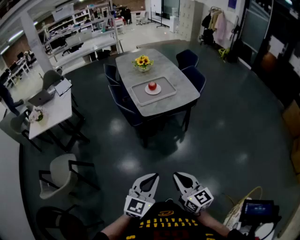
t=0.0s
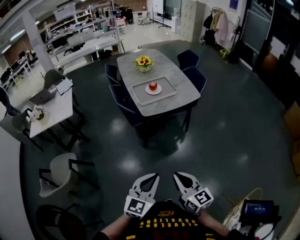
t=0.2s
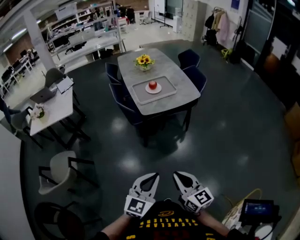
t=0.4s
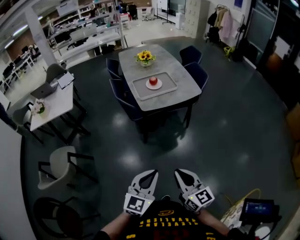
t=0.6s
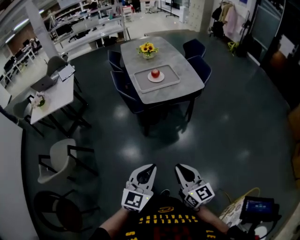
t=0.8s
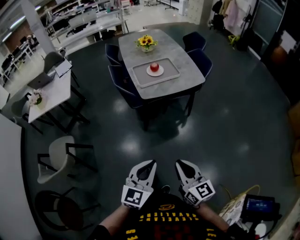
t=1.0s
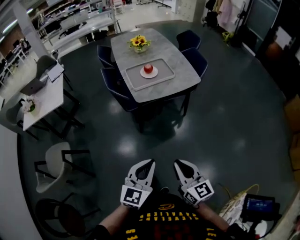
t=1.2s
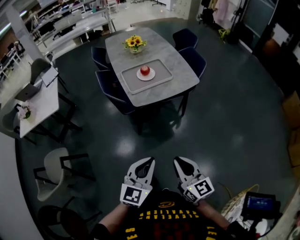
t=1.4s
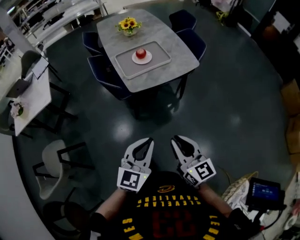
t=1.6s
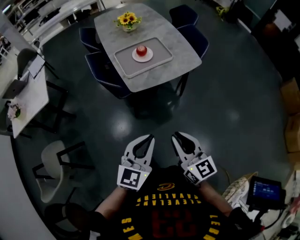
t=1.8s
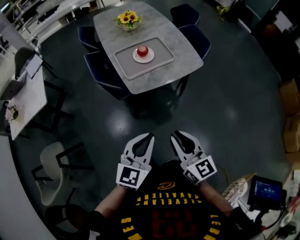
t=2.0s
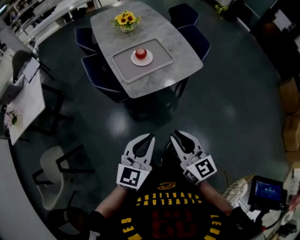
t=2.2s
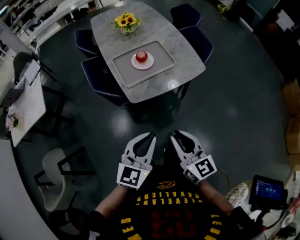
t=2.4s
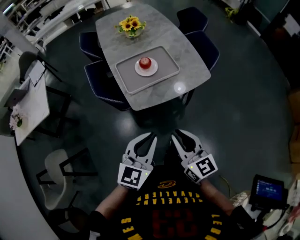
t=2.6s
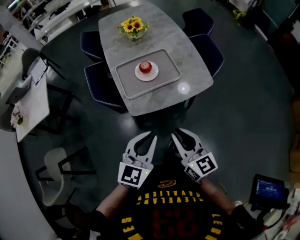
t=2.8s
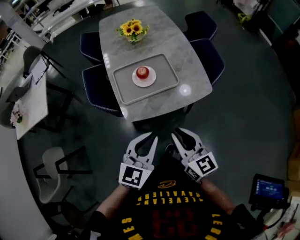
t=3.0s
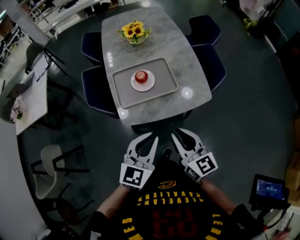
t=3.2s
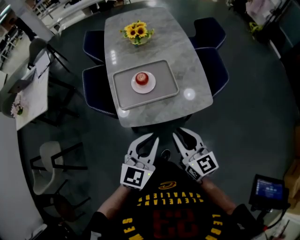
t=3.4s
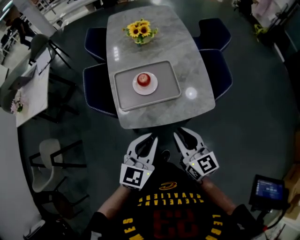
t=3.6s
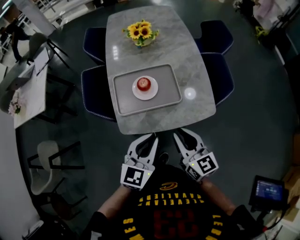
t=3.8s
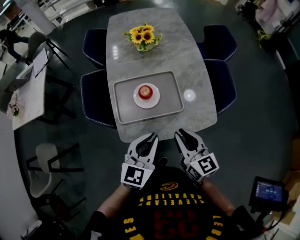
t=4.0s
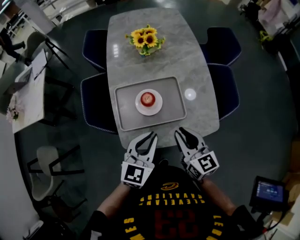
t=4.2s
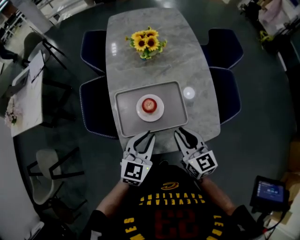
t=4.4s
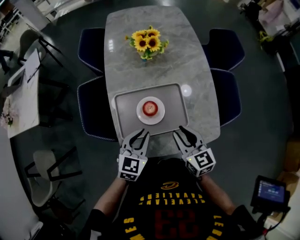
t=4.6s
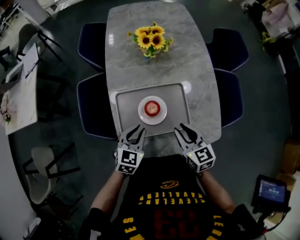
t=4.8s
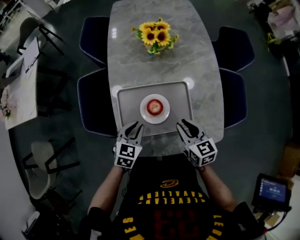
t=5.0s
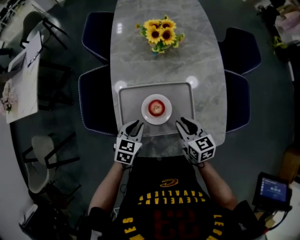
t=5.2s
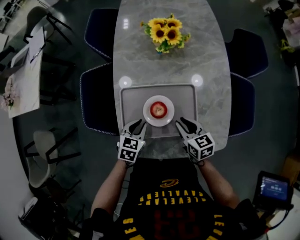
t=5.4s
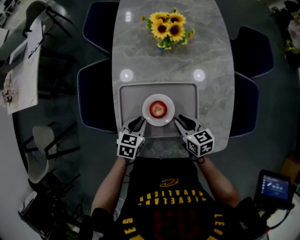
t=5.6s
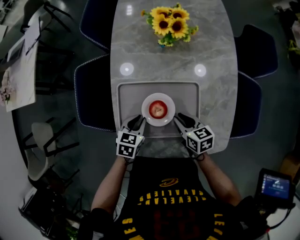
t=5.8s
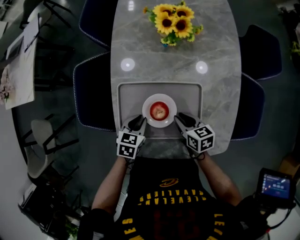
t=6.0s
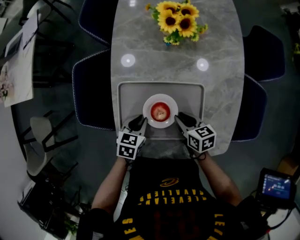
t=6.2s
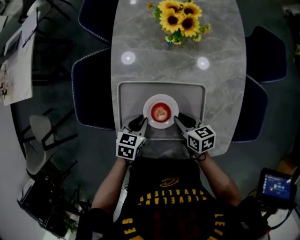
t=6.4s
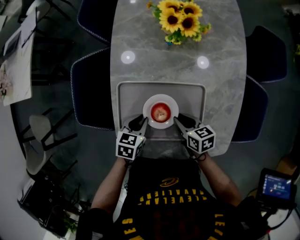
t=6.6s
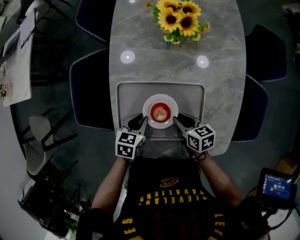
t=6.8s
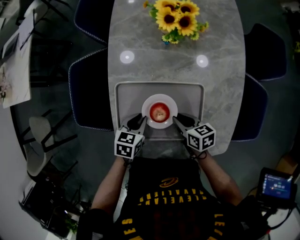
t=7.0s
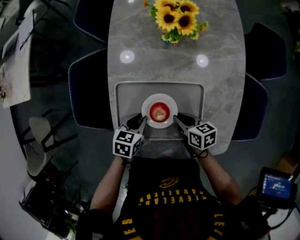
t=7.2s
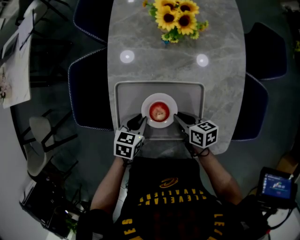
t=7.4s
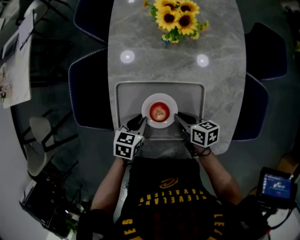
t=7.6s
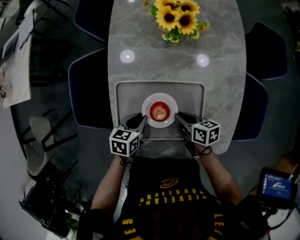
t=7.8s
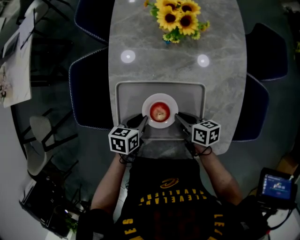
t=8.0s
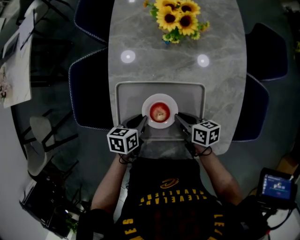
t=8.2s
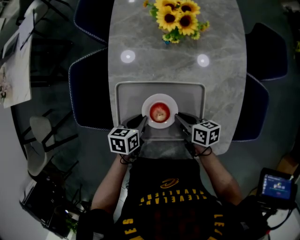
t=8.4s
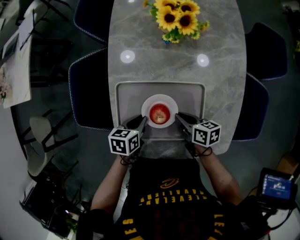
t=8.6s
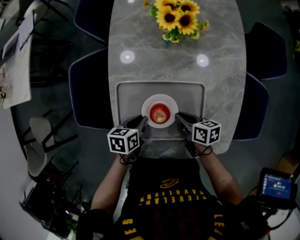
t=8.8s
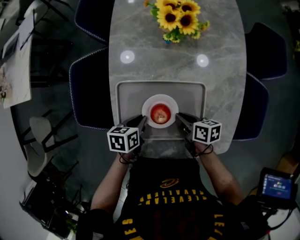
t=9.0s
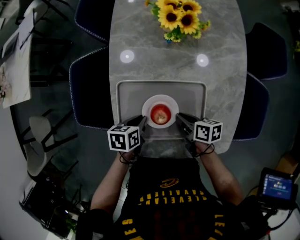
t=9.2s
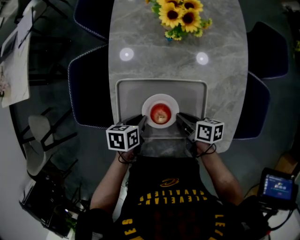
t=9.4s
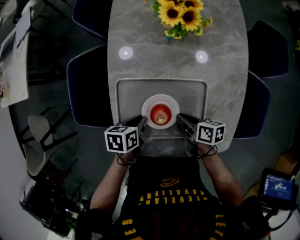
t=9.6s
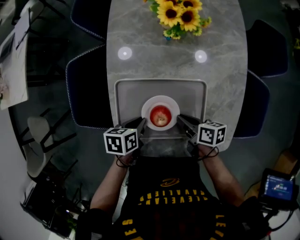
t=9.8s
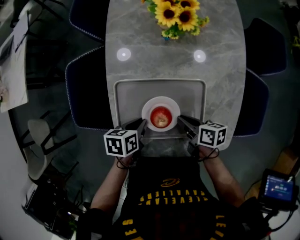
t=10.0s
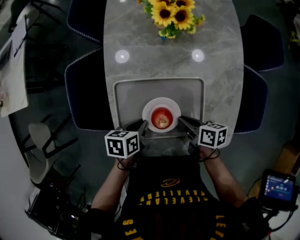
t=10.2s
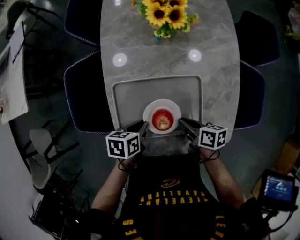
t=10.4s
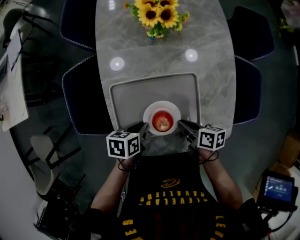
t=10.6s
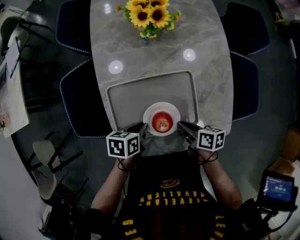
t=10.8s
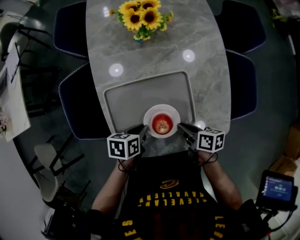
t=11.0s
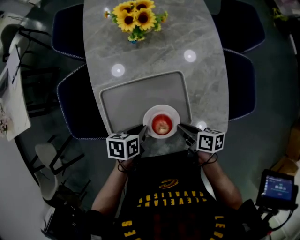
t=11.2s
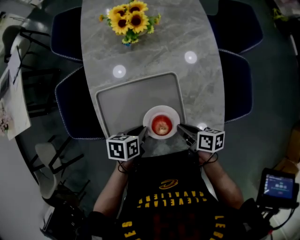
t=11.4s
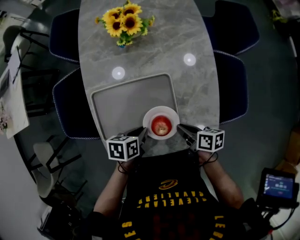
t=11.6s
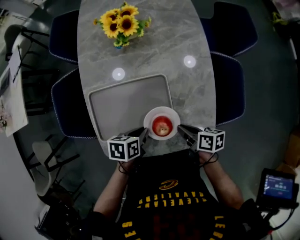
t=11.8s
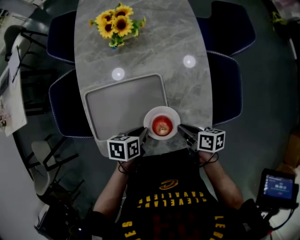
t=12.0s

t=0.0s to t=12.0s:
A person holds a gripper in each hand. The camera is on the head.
t=0.0s to t=1.6s: Both grippers move forward, approximately 15 cm.
t=1.6s to t=3.0s: The two grippers go roughly 25 cm forward.
t=3.0s to t=4.4s: The grippers both shift forward by roughly 25 cm.
t=4.4s to t=6.0s: The grippers both shift downward and forward by about 25 cm. The left gripper angles its fingers downward, by approximately 30 degrees. The right gripper rotates approximately 40 degrees.
t=6.0s to t=7.6s: The grippers make only small movements.
t=7.6s to t=9.0s: The left gripper swivels about 20 degrees.
t=9.0s to t=10.4s: The grippers move only a little.
t=10.4s to t=12.0s: The two grippers go about 15 cm to the right.

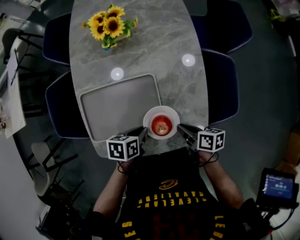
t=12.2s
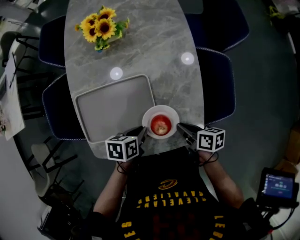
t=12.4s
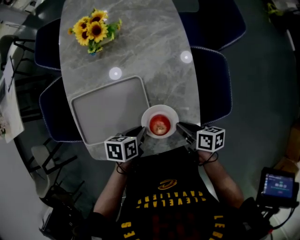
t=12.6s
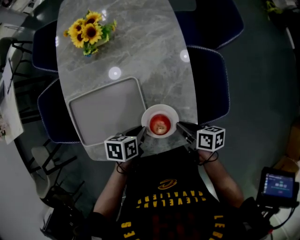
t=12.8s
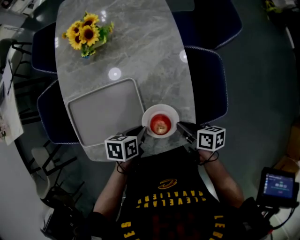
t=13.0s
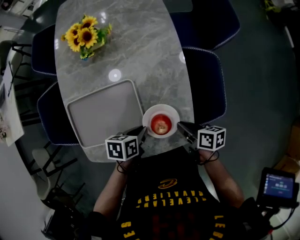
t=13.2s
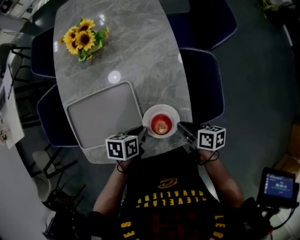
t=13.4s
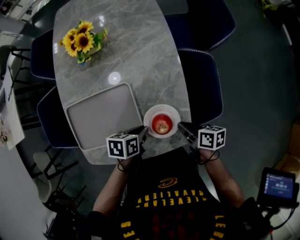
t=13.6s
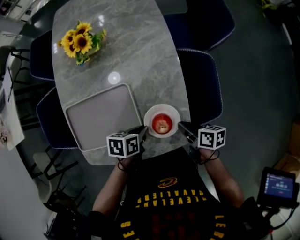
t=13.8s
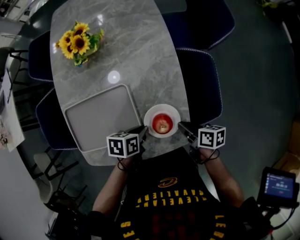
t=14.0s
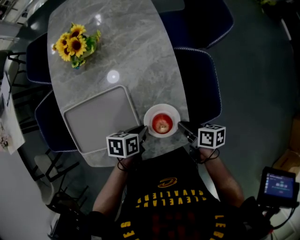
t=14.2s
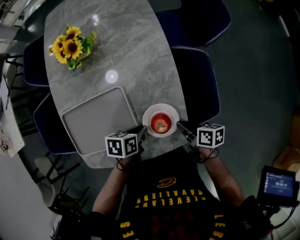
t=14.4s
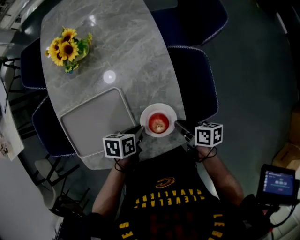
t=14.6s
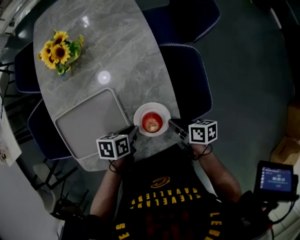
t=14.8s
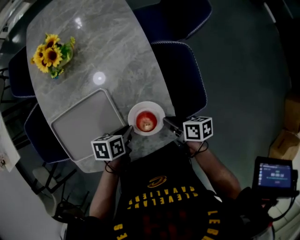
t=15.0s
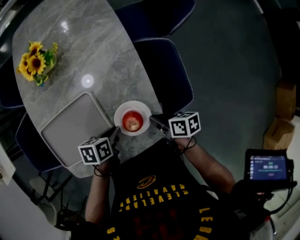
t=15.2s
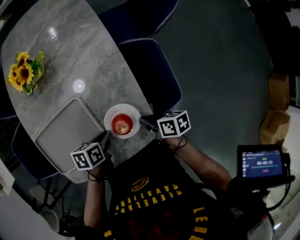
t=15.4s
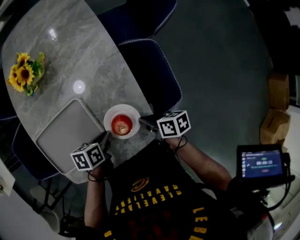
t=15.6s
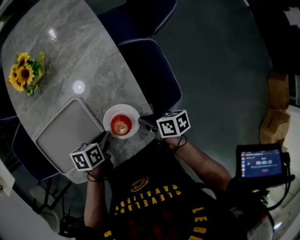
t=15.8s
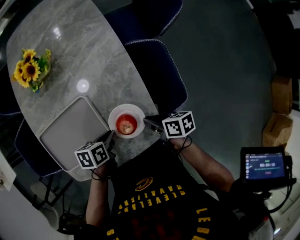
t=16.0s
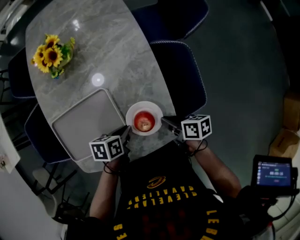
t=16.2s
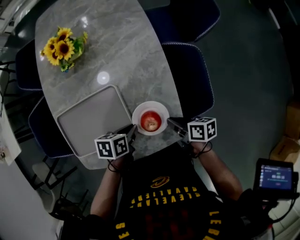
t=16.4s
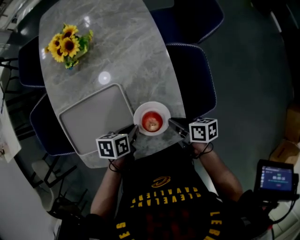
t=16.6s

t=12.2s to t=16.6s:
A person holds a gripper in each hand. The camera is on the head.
t=12.2s to t=13.6s: The two grippers go roughly 10 cm to the right.
t=13.6s to t=15.2s: Neither gripper changes place.
t=15.2s to t=16.6s: The grippers make only small movements.

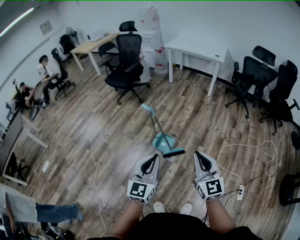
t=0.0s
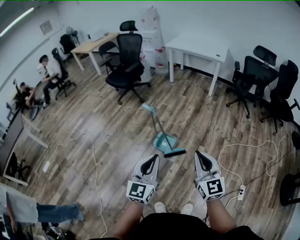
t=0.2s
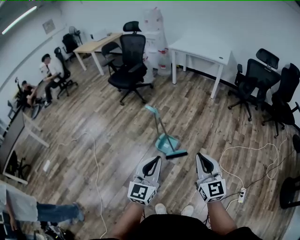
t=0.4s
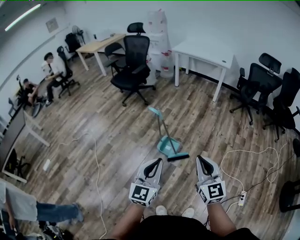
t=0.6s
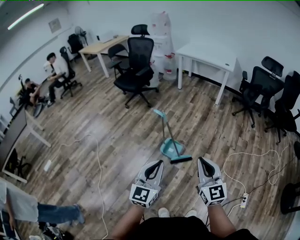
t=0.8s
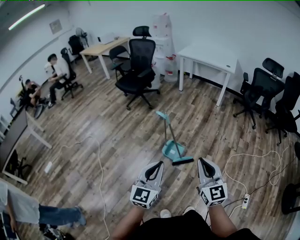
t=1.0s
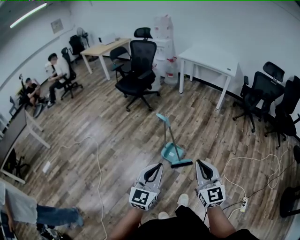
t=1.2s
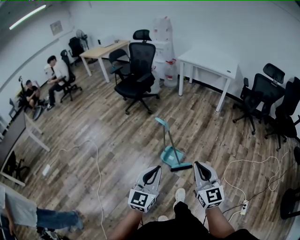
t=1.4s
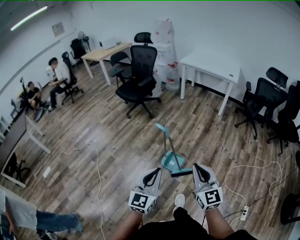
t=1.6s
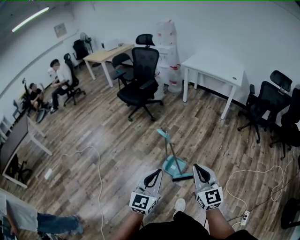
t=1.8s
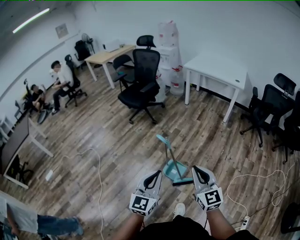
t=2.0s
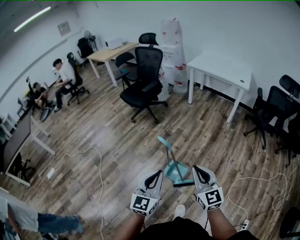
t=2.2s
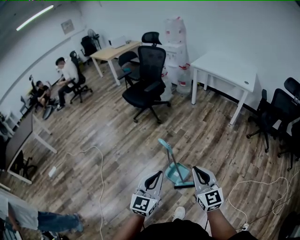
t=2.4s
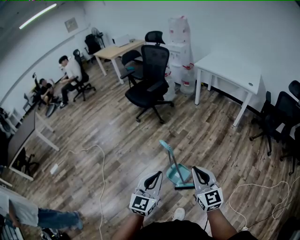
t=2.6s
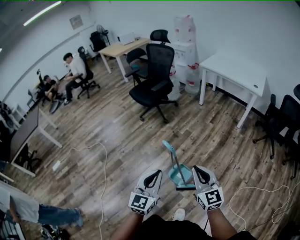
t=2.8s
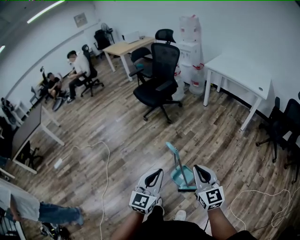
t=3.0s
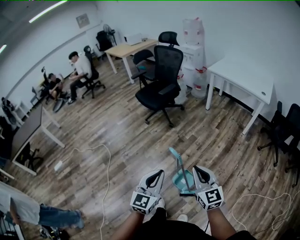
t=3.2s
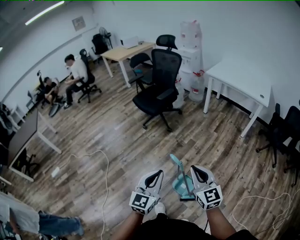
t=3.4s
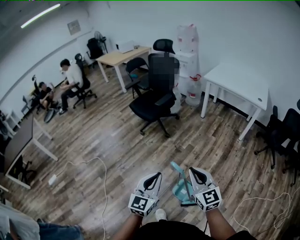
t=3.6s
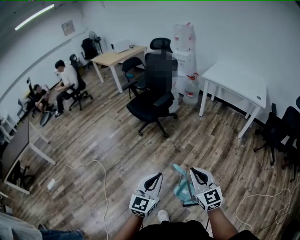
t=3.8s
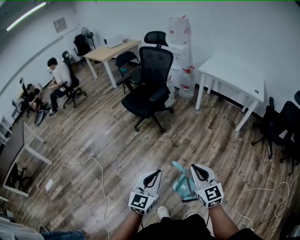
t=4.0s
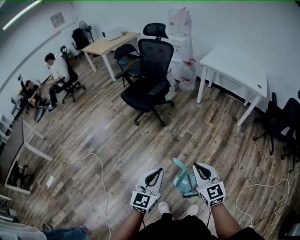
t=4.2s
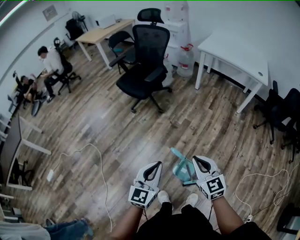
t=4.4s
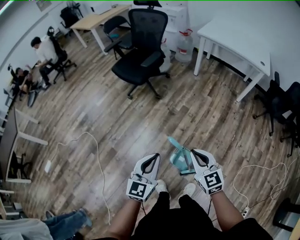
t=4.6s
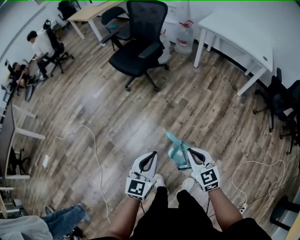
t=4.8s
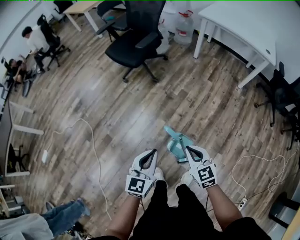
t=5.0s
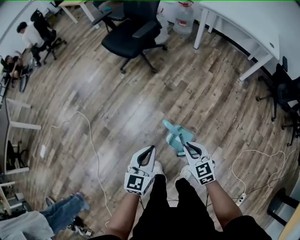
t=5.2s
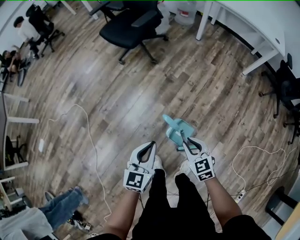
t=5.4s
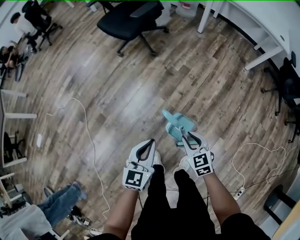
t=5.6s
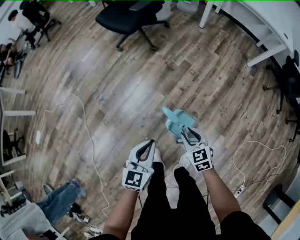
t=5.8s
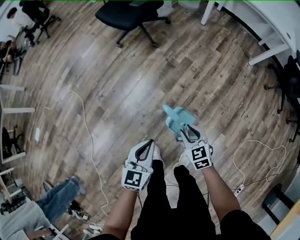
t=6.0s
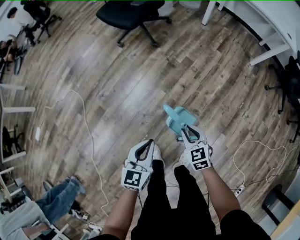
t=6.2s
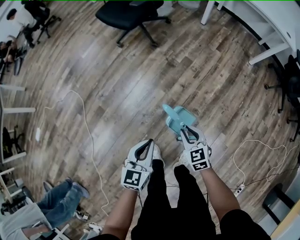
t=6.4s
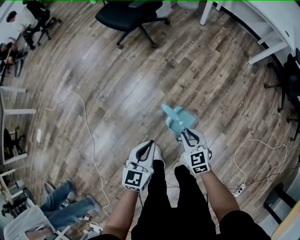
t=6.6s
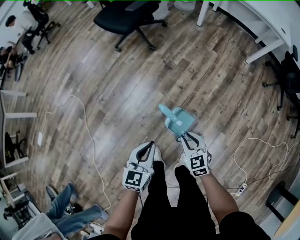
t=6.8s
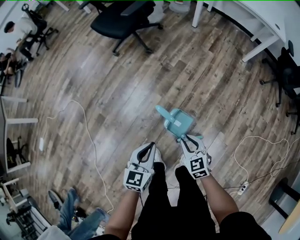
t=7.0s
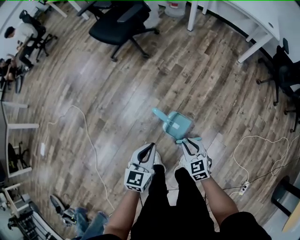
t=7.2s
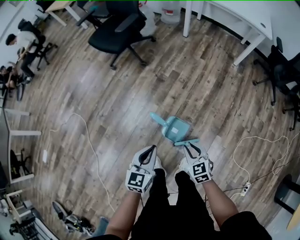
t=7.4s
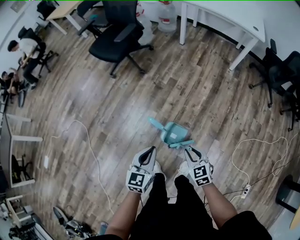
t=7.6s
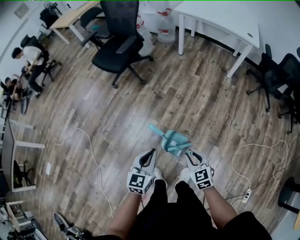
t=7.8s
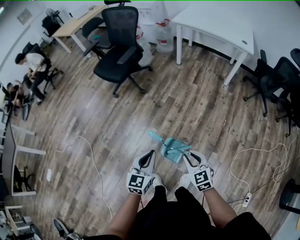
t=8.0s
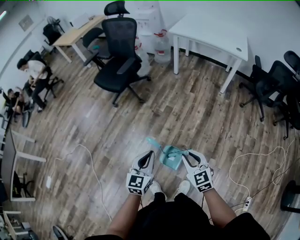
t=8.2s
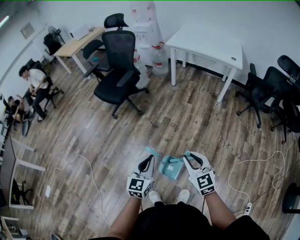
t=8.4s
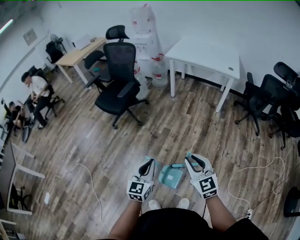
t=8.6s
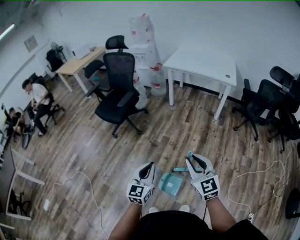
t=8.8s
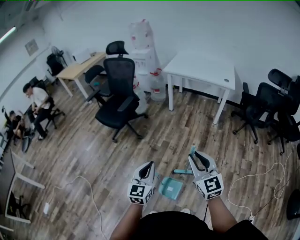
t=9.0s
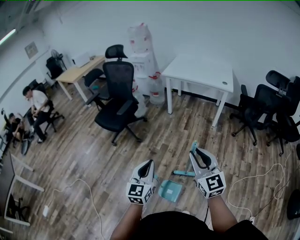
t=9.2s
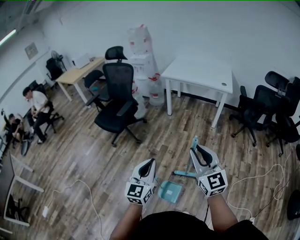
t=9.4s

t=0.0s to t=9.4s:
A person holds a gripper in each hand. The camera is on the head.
t=0.0s to t=1.6s: The grippers both shift to the left and forward by approximately 10 cm.
t=1.6s to t=3.2s: Both grippers move forward, roughly 20 cm.
t=3.2s to t=4.8s: The left gripper shifts some 15 cm forward, downward and to the left, while the right gripper goes approximately 20 cm downward, forward and to the left, and turns by approximately 20 degrees.
t=4.8s to t=6.2s: Both grippers move downward, roughly 15 cm. The right gripper opens up.
t=6.2s to t=7.8s: The right gripper moves upward, to the right and backward, some 15 cm; the left gripper heads upward and to the right, covering approximately 10 cm.
t=7.8s to t=9.4s: The right gripper travels upward by some 35 cm, and tips its fingers upward by some 40 degrees; the left gripper travels upward by approximately 20 cm, and changes its angle by about 20 degrees.
